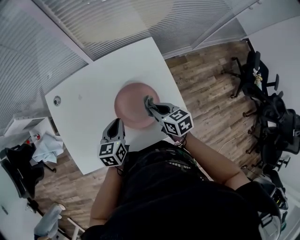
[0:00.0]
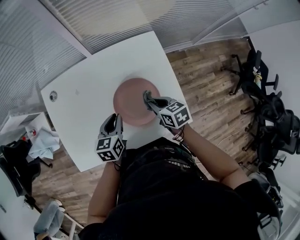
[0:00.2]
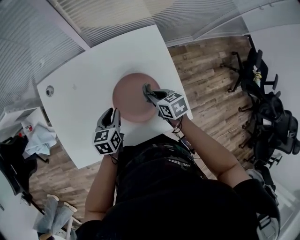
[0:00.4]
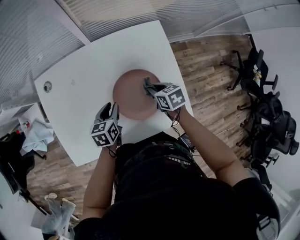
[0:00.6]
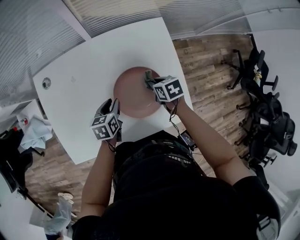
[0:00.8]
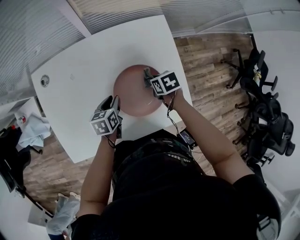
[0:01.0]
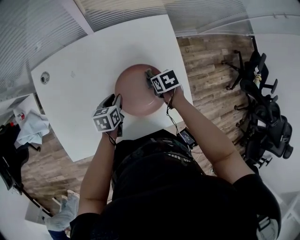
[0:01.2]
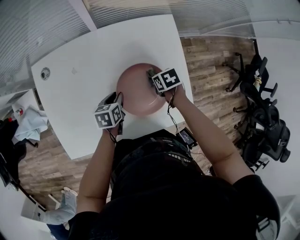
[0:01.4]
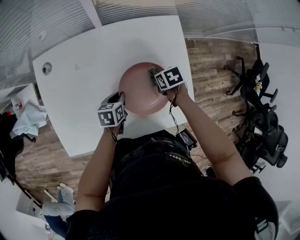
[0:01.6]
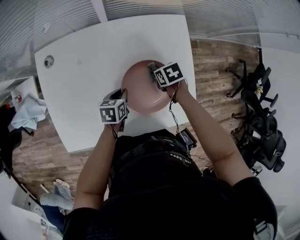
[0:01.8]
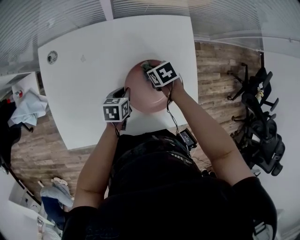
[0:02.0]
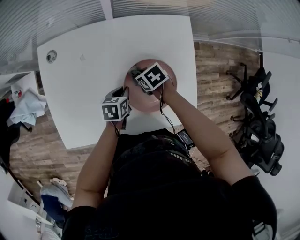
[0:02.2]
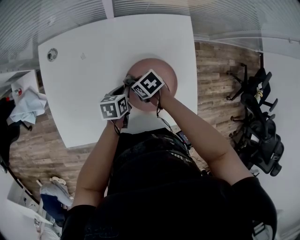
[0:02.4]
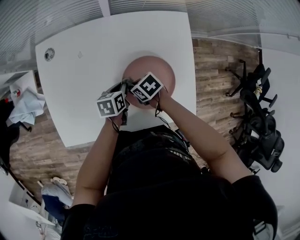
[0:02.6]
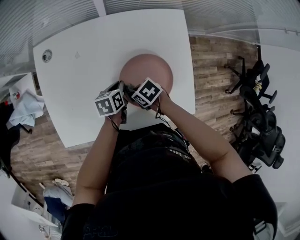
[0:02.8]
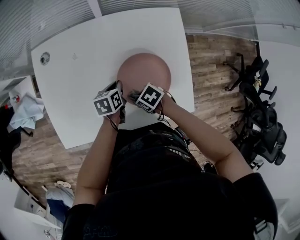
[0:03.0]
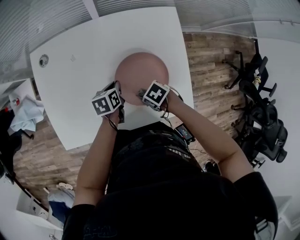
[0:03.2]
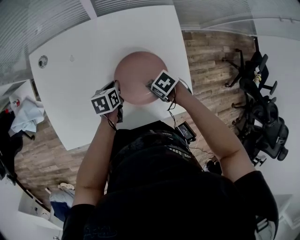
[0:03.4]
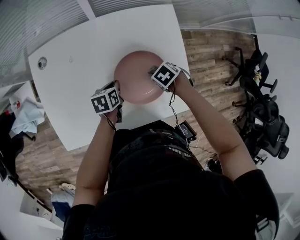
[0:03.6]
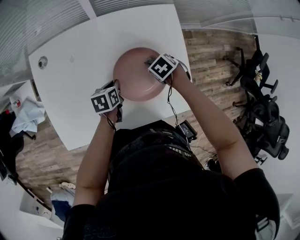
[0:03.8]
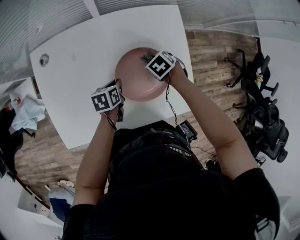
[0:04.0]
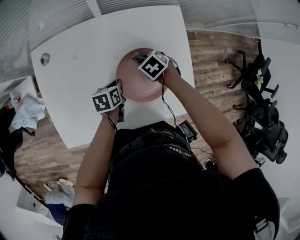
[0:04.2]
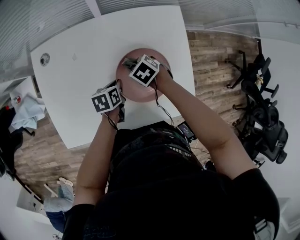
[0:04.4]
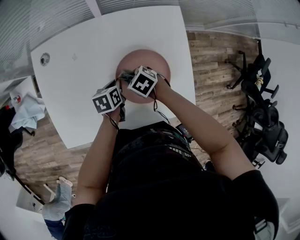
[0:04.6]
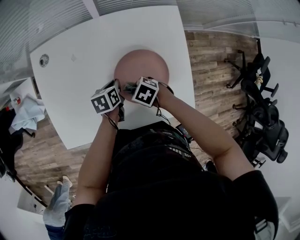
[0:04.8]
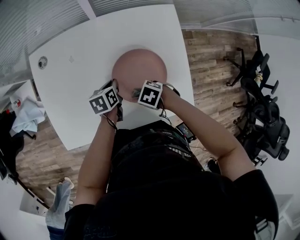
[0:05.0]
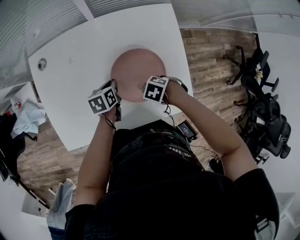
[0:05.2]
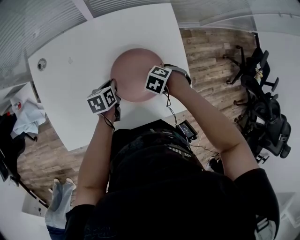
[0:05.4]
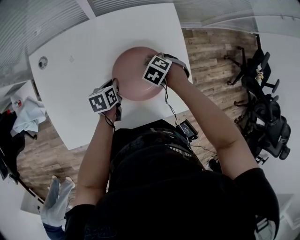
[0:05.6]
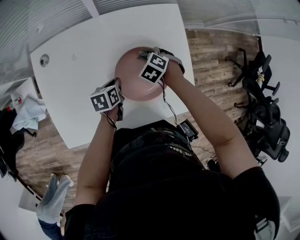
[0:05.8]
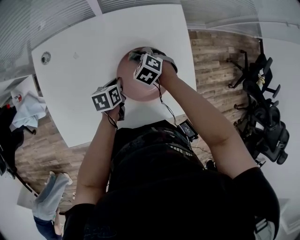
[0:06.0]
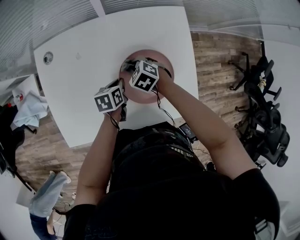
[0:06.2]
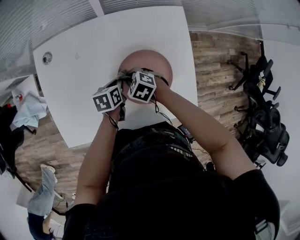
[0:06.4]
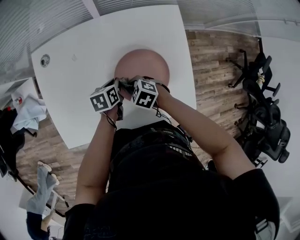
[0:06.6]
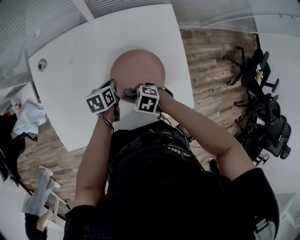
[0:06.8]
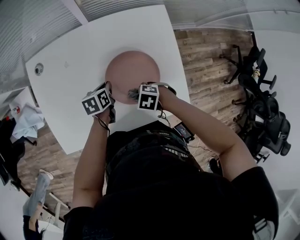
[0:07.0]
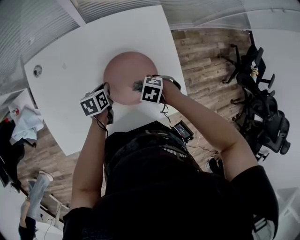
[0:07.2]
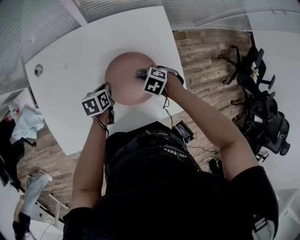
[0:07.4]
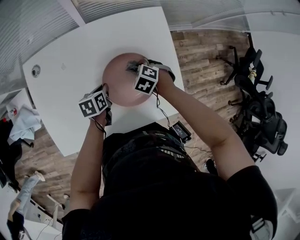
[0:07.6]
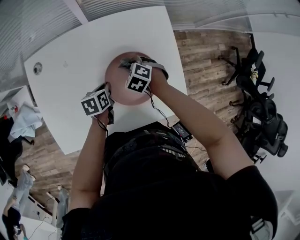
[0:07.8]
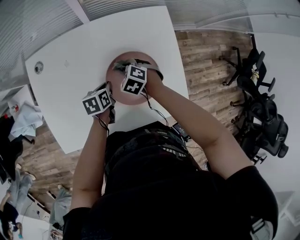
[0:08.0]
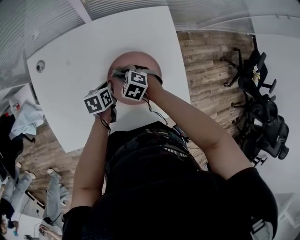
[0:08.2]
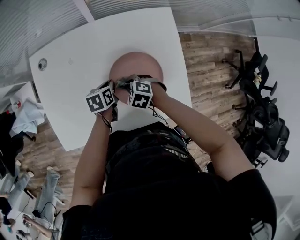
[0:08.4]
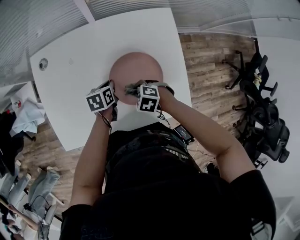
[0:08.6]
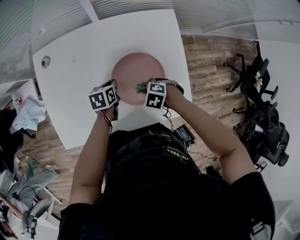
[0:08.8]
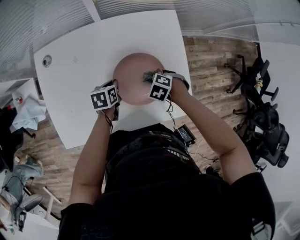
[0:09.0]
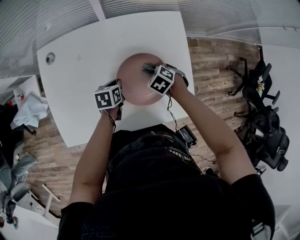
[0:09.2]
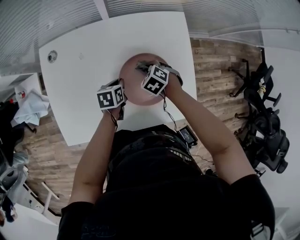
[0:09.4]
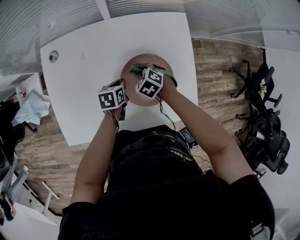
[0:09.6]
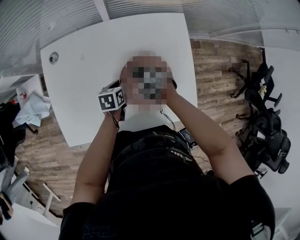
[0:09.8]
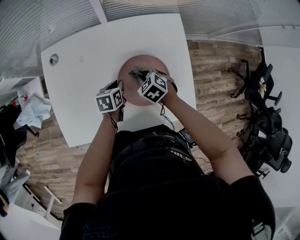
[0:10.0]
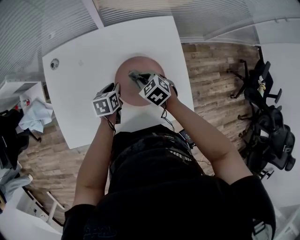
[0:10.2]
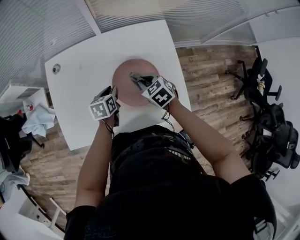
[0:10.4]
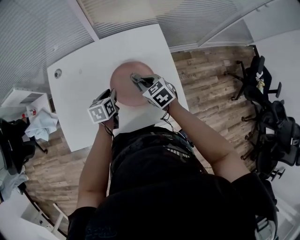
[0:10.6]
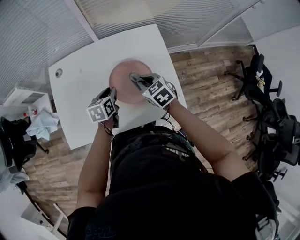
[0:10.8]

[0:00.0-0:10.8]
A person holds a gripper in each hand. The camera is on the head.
0:00.0 to 0:01.6: The right gripper travels downward and forward by some 15 cm, and points its fingers about 30 degrees further downward. Meanwhile the left gripper heads downward, covering some 15 cm, and swivels about 20 degrees.
0:01.6 to 0:03.0: The right gripper moves about 20 cm, and turns by about 30 degrees.
0:09.2 to 0:10.8: The grippers both shift upward by about 15 cm. The right gripper tips its fingers upward by approximately 30 degrees.

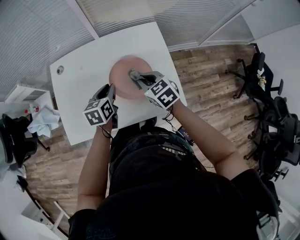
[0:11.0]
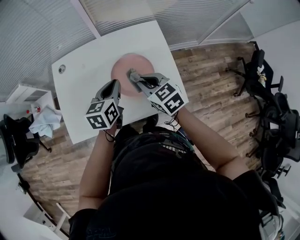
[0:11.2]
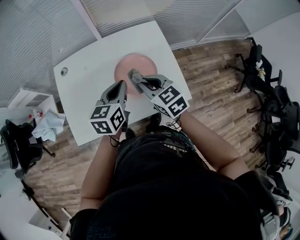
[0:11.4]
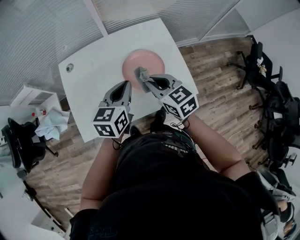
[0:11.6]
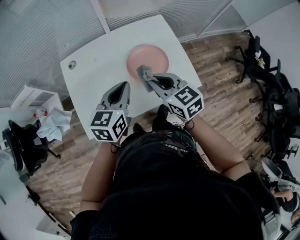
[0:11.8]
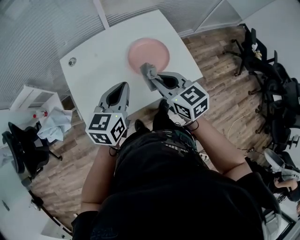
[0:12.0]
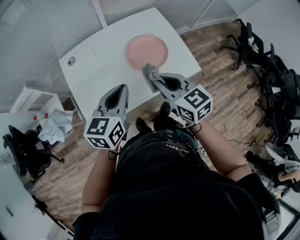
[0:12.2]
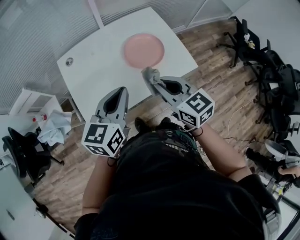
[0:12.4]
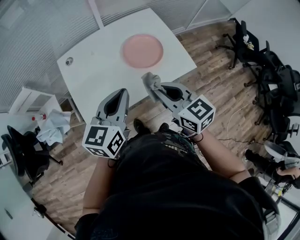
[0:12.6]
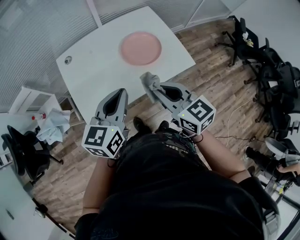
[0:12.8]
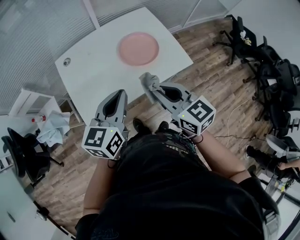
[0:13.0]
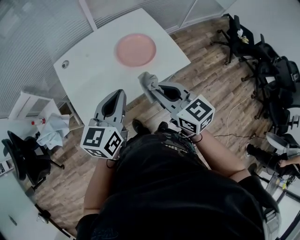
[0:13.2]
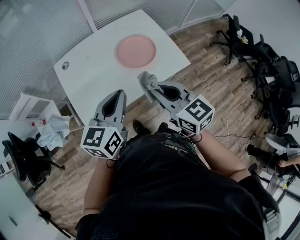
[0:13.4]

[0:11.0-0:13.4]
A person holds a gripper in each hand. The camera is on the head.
0:11.0 to 0:12.2: The right gripper is displaced backward, upward and to the left by roughly 25 cm, and rotates some 20 degrees. The left gripper moves upward, backward and to the left, about 25 cm, and rotates some 30 degrees.
0:12.2 to 0:13.4: Both grippers move backward, about 10 cm.

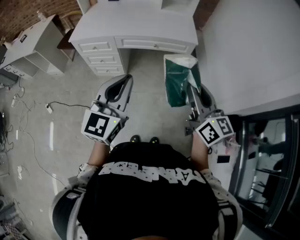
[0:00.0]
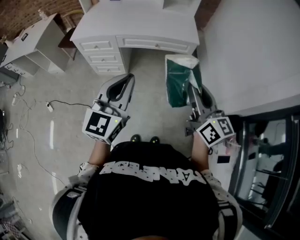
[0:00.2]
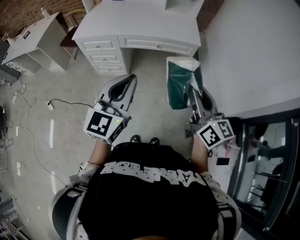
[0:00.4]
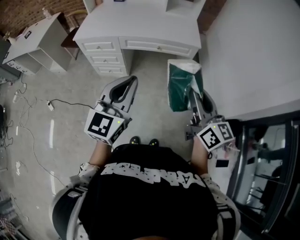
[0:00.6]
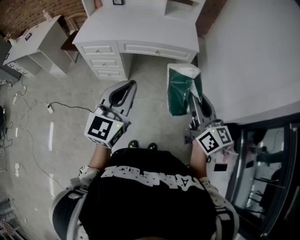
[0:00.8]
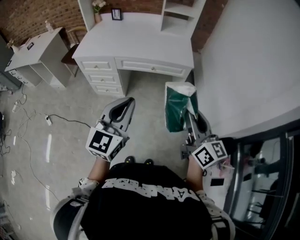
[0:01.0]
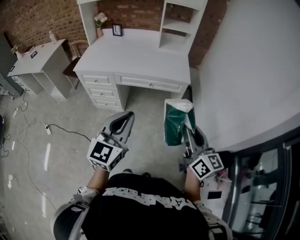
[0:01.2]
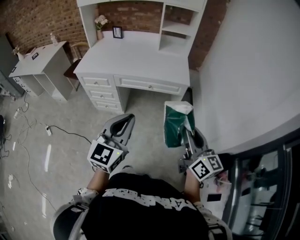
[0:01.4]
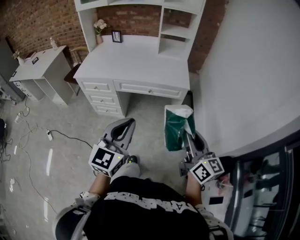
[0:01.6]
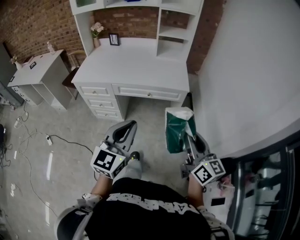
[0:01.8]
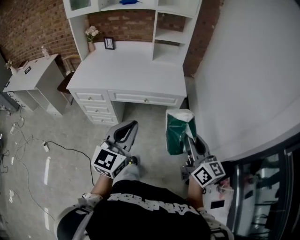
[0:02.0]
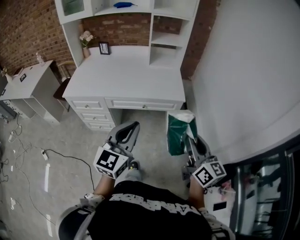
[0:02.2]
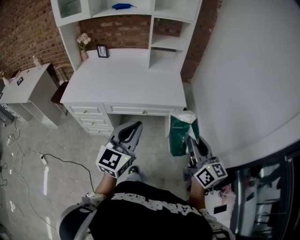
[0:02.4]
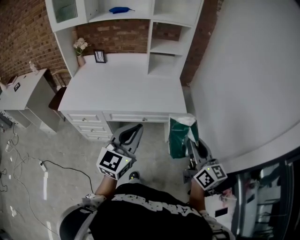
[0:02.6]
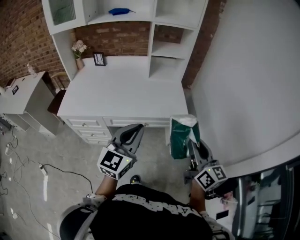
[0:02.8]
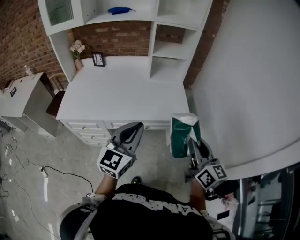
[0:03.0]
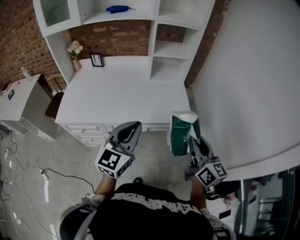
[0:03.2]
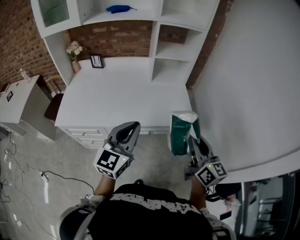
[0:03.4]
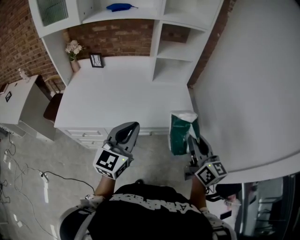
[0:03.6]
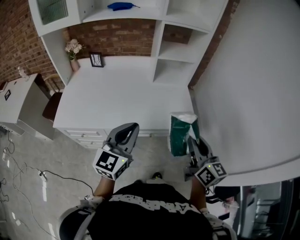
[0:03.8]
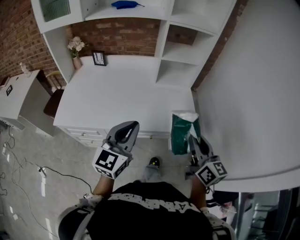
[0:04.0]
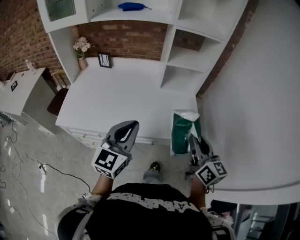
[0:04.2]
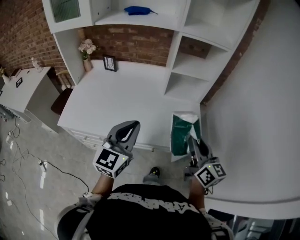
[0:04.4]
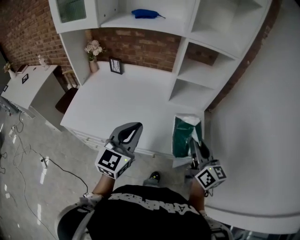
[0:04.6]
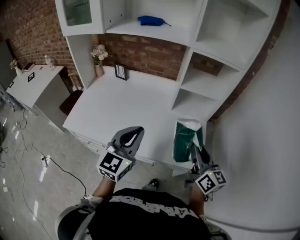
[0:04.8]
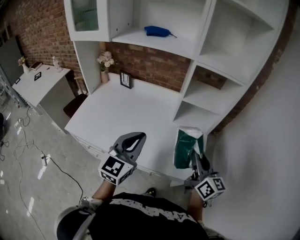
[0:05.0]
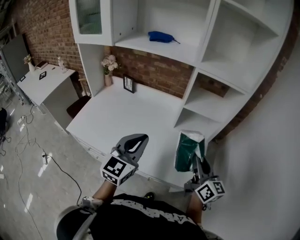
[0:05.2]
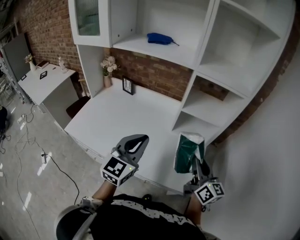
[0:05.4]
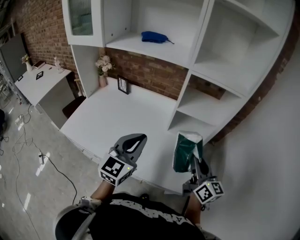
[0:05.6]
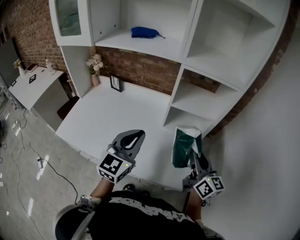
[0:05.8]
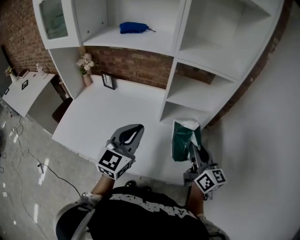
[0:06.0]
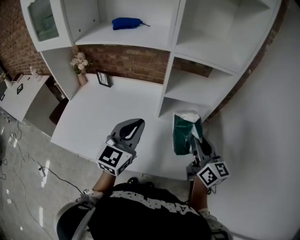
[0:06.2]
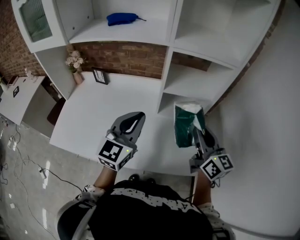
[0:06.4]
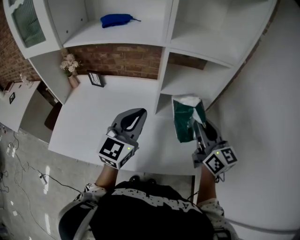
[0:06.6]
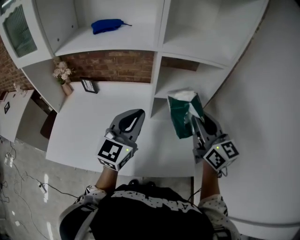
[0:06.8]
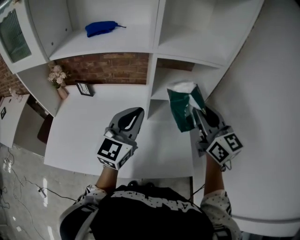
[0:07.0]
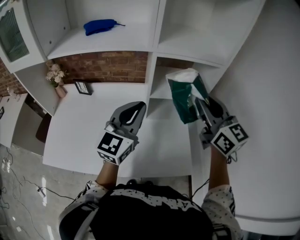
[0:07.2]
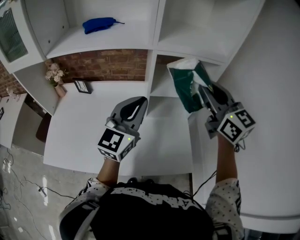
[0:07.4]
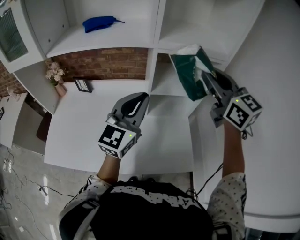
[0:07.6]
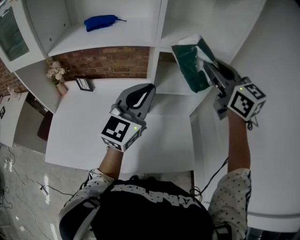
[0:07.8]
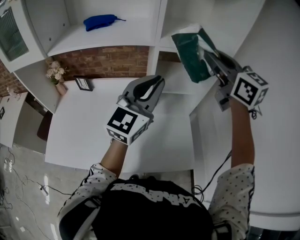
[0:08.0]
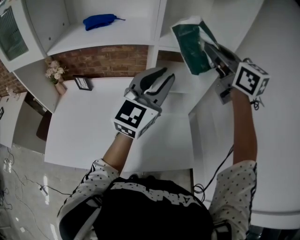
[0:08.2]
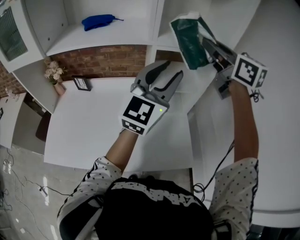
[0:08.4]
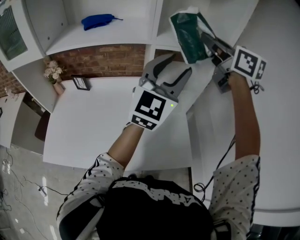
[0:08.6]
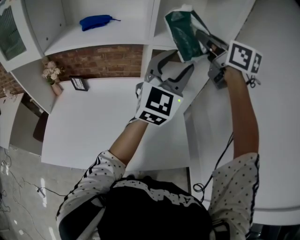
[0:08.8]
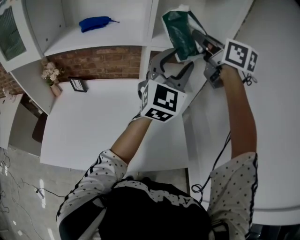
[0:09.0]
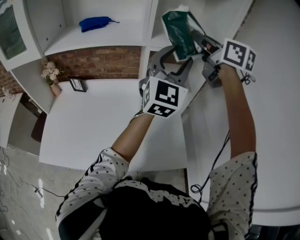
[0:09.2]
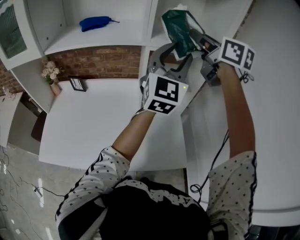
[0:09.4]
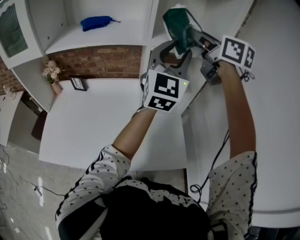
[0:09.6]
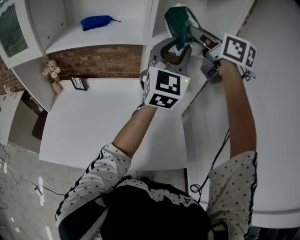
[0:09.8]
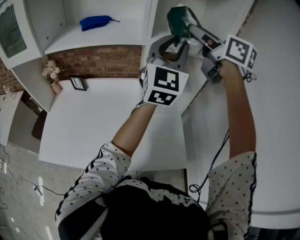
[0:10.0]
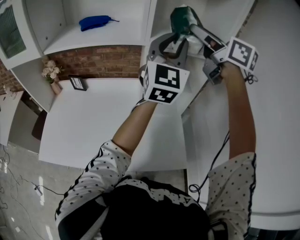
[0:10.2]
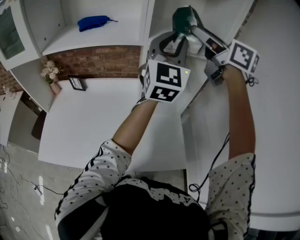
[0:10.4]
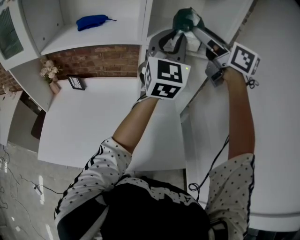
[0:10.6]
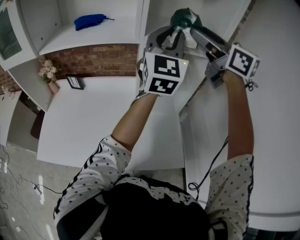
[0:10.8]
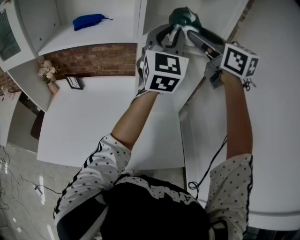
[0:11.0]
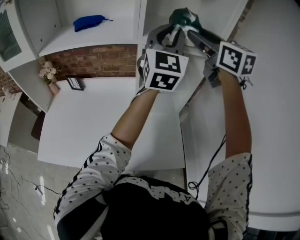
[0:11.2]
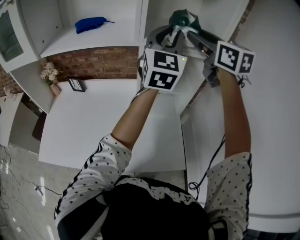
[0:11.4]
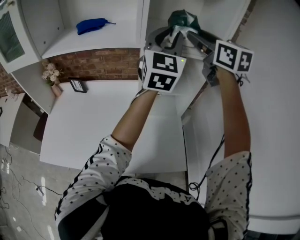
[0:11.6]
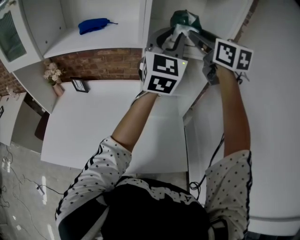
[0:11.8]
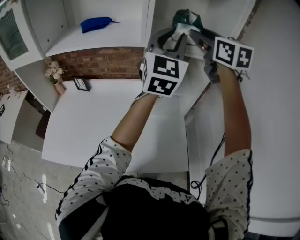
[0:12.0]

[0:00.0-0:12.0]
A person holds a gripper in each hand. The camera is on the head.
0:00.0 to 0:01.6: Both grippers move to the right, approximately 5 cm.
0:01.6 to 0:03.0: The two grippers go some 25 cm forward.
0:03.0 to 0:04.4: The left gripper goes roughly 15 cm forward and to the left. The right gripper travels forward by approximately 20 cm.
0:04.4 to 0:06.0: The right gripper heads forward, covering some 15 cm. The left gripper travels forward and to the right by some 15 cm.
0:06.0 to 0:07.6: The right gripper travels upward and forward by about 25 cm, and rotates some 30 degrees; the left gripper is displaced forward and upward by some 10 cm.
0:07.6 to 0:09.0: The left gripper goes some 15 cm to the right, upward and forward, and opens, while the right gripper shifts some 10 cm forward and upward.
0:09.0 to 0:10.4: The left gripper moves about 5 cm, and closes up; the right gripper opens its fingers.
0:10.4 to 0:12.0: The right gripper changes its angle by roughly 20 degrees.
